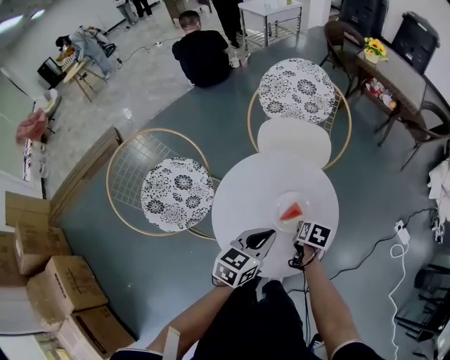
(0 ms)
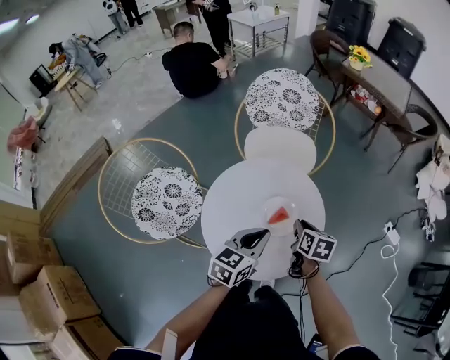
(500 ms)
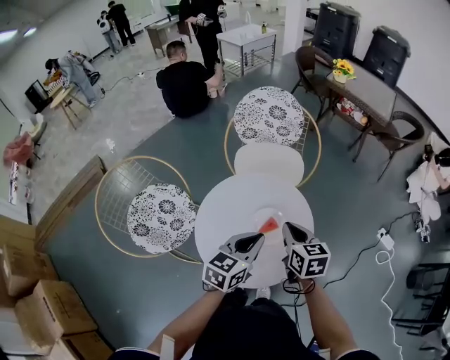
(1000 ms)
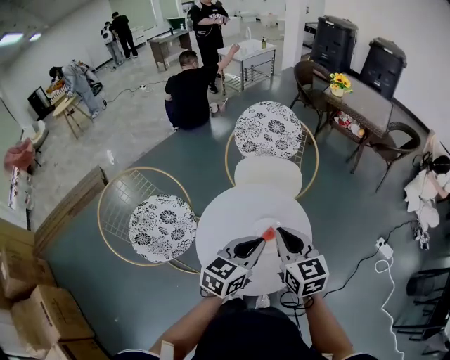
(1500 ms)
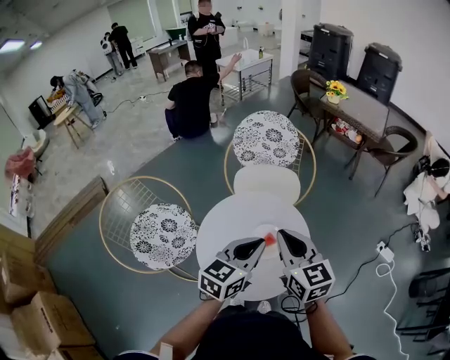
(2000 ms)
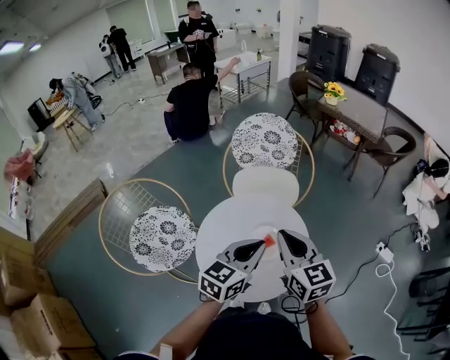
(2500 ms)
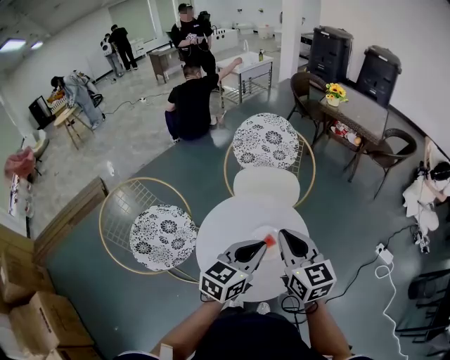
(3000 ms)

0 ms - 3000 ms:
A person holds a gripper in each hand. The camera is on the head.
0 ms - 1500 ms: The right gripper heads upward, covering approximately 30 cm, tilts its fingers about 50 degrees upward, and closes up. Meanwhile the left gripper heads upward, covering roughly 10 cm.
1500 ms - 3000 ms: The grippers make only small movements.

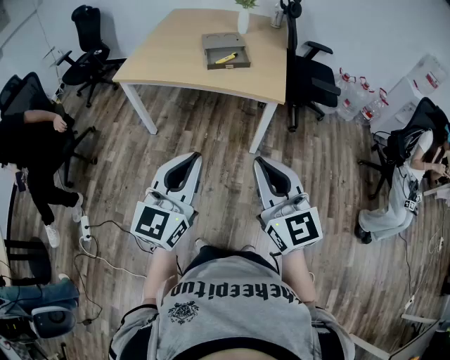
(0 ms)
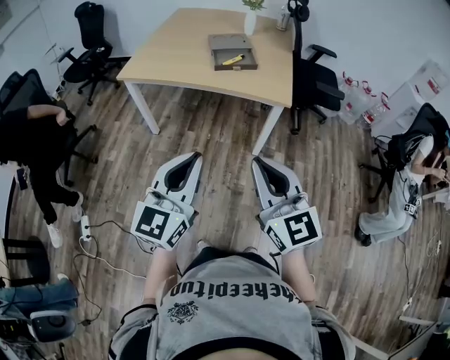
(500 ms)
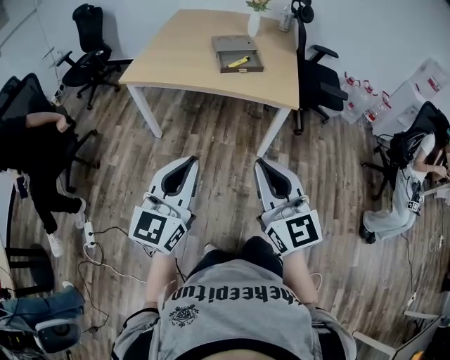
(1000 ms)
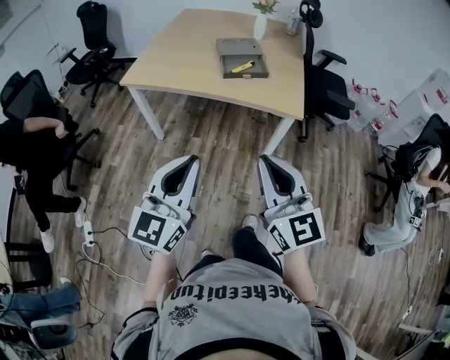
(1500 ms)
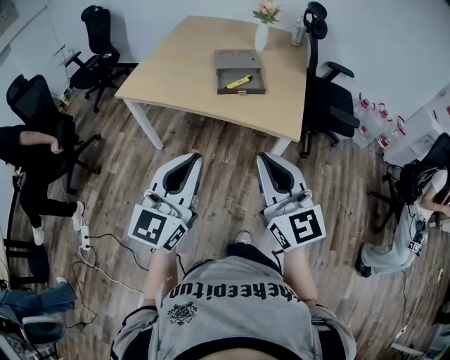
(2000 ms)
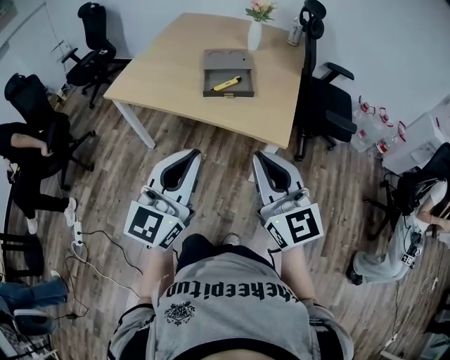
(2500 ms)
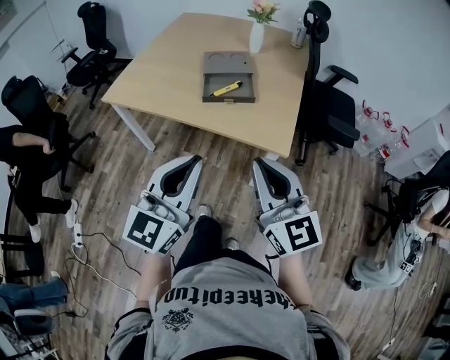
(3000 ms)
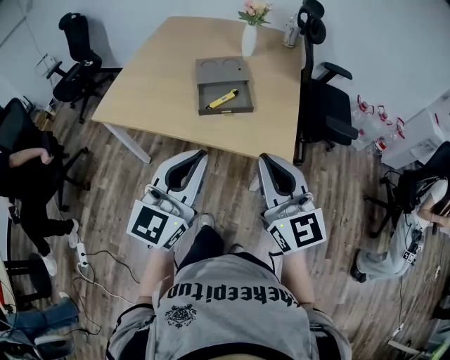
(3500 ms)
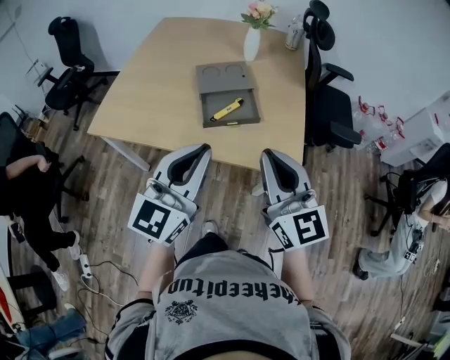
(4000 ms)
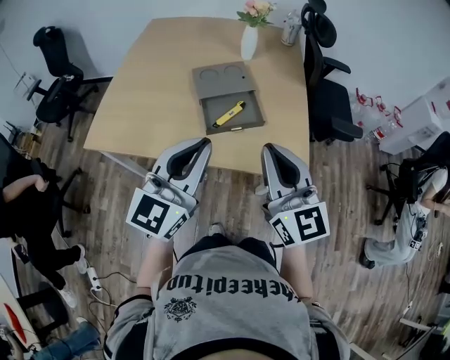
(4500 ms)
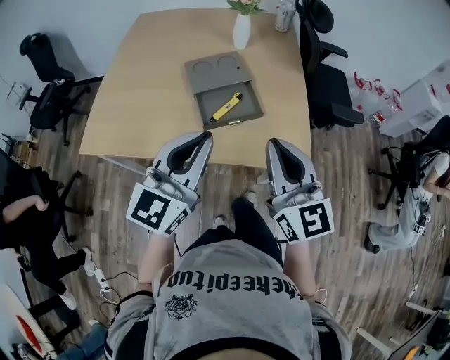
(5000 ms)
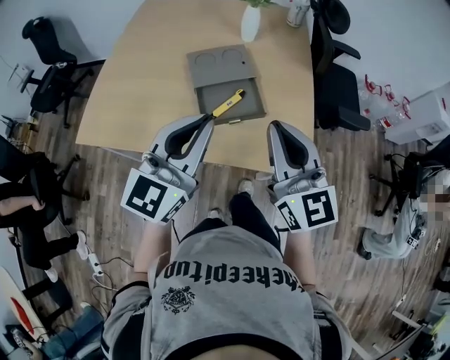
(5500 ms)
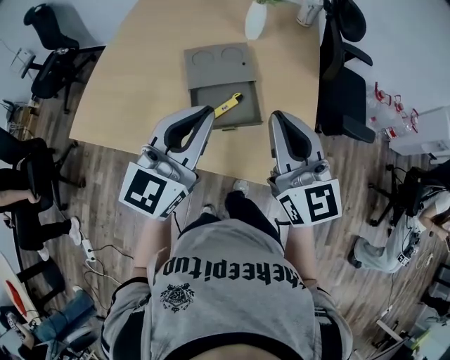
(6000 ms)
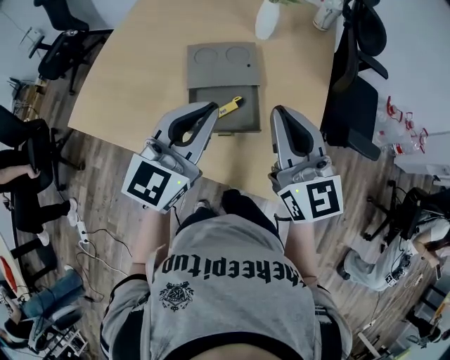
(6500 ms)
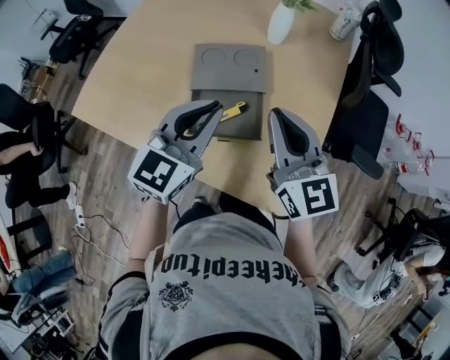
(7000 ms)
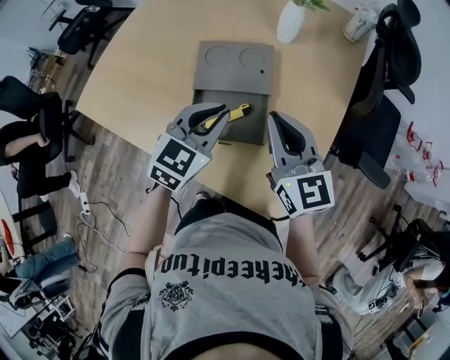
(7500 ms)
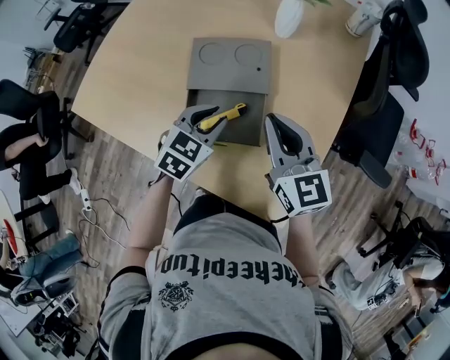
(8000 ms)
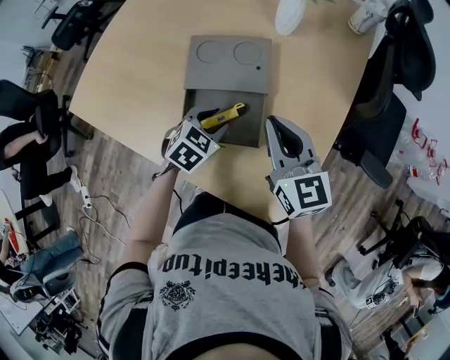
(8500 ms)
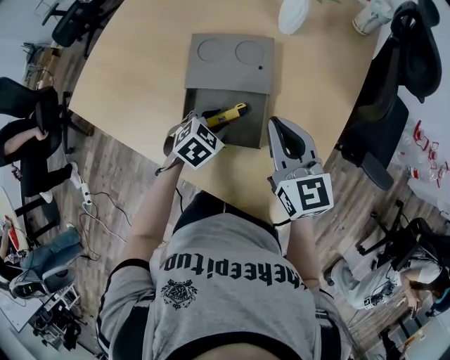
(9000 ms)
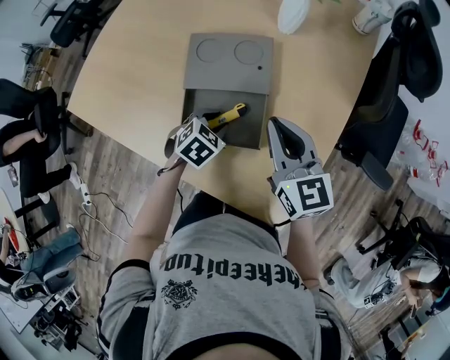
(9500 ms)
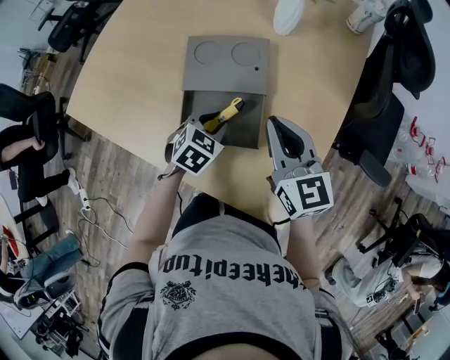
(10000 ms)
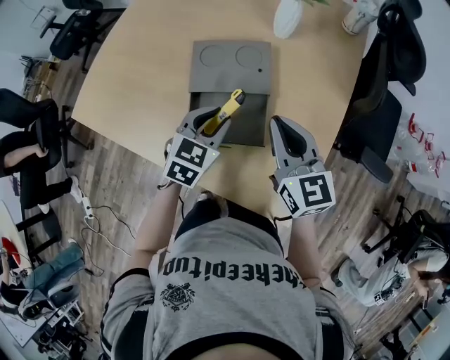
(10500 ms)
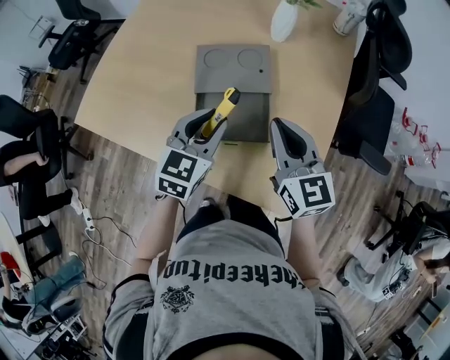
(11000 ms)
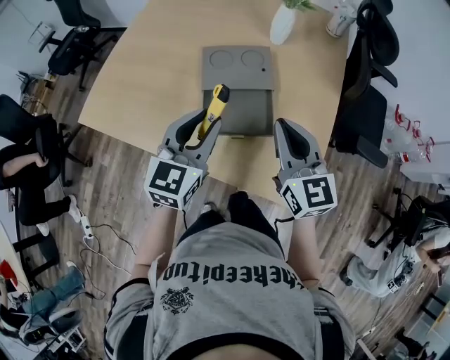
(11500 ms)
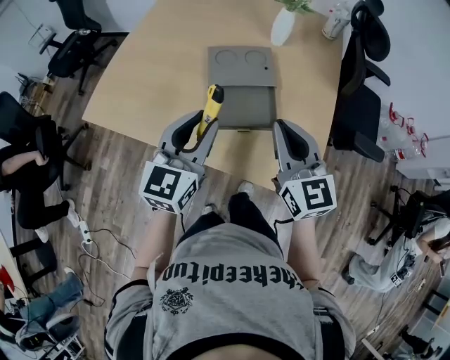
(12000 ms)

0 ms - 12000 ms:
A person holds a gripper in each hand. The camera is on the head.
0 ms - 2000 ms: Both grippers travel together forward, roughly 15 cm.
2000 ms - 4000 ms: Both grippers travel together forward, roughly 25 cm.
4000 ms - 6000 ms: Both grippers move forward, roughly 20 cm.
6000 ms - 8000 ms: The right gripper heads forward and downward, covering some 20 cm, and rotates approximately 20 degrees; the left gripper moves downward and forward, some 25 cm, and tips its fingers downward by roughly 40 degrees.
8000 ms - 10000 ms: The left gripper heads downward, covering roughly 10 cm.
10000 ms - 12000 ms: The left gripper travels upward, backward and to the left by approximately 30 cm, and angles its fingers upward, by roughly 50 degrees. Meanwhile the right gripper moves backward, upward and to the left, roughly 15 cm.

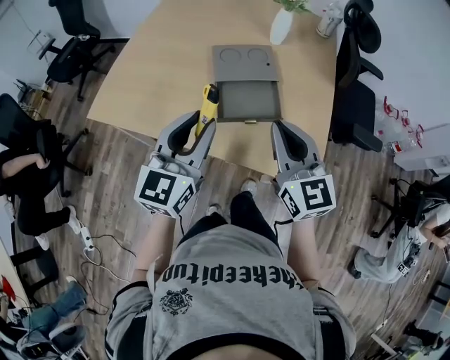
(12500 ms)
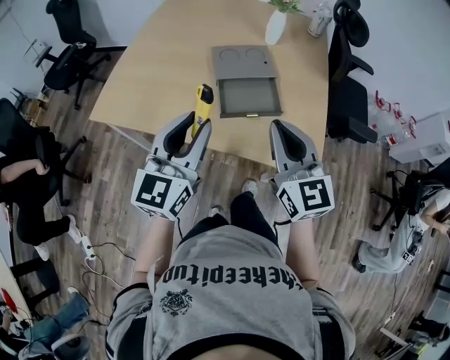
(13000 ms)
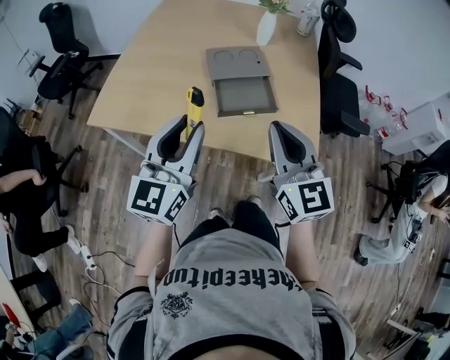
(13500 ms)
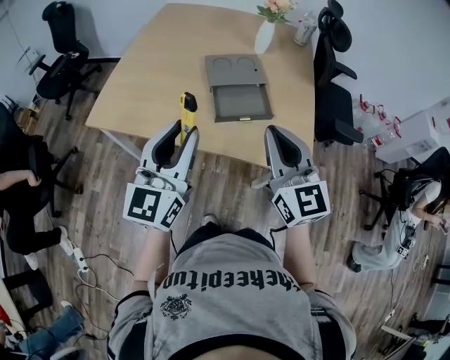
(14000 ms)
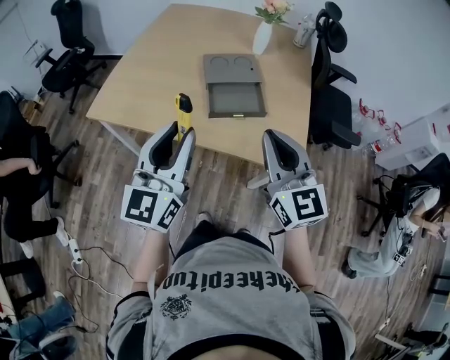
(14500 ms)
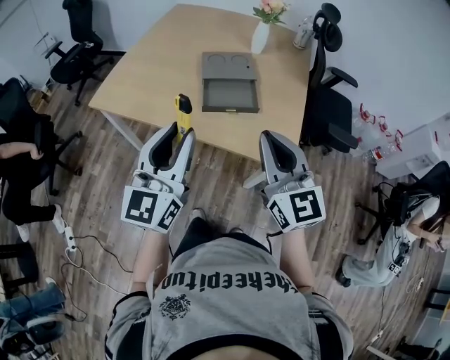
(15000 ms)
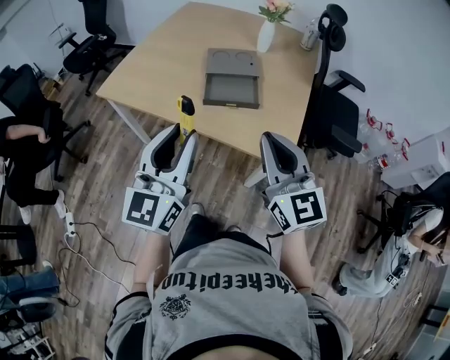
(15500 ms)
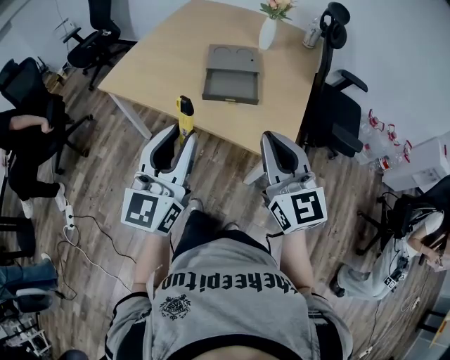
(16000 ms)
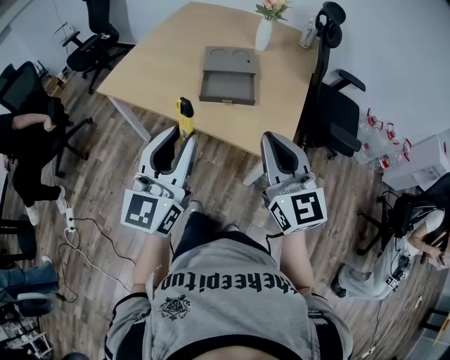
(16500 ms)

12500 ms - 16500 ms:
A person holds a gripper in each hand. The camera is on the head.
12500 ms - 14500 ms: Both grippers move backward and upward, about 15 cm.
14500 ms - 16500 ms: Both grippers move backward and to the right, roughly 15 cm.

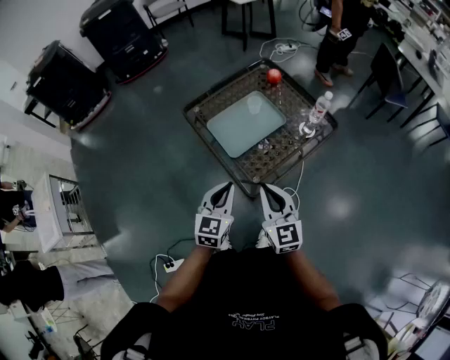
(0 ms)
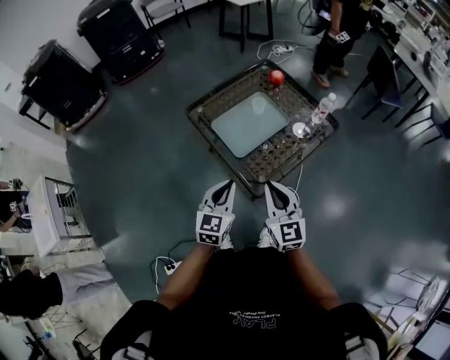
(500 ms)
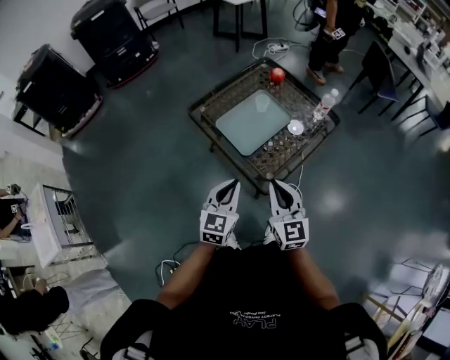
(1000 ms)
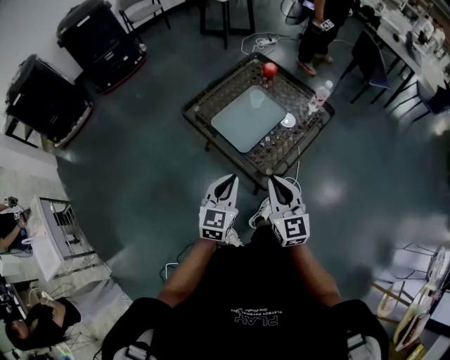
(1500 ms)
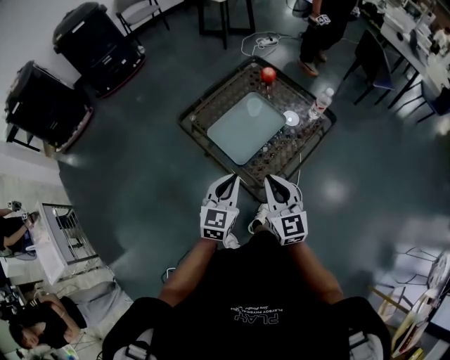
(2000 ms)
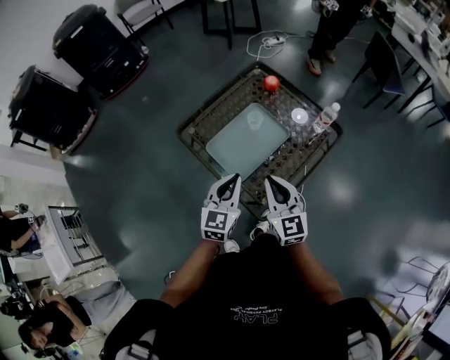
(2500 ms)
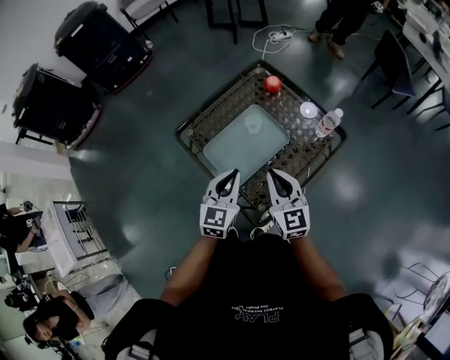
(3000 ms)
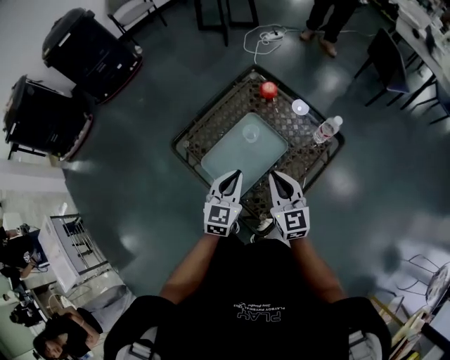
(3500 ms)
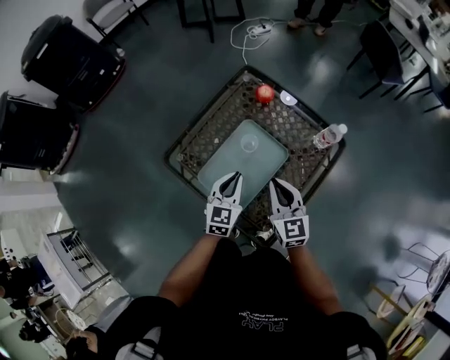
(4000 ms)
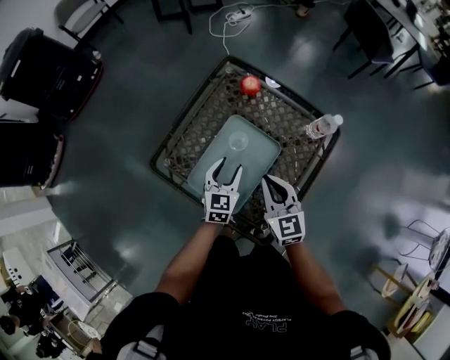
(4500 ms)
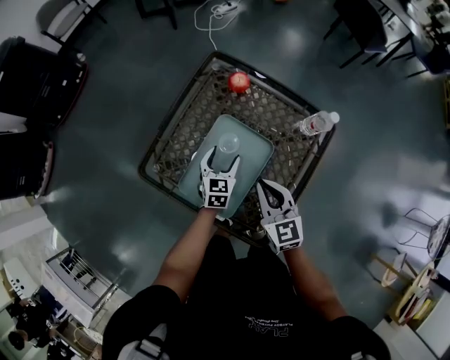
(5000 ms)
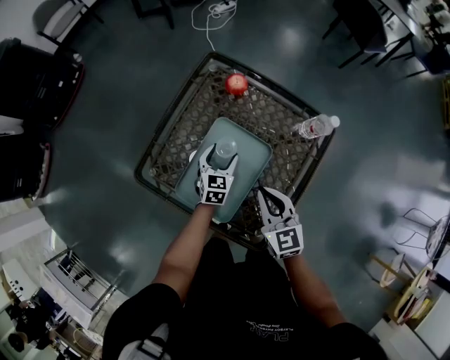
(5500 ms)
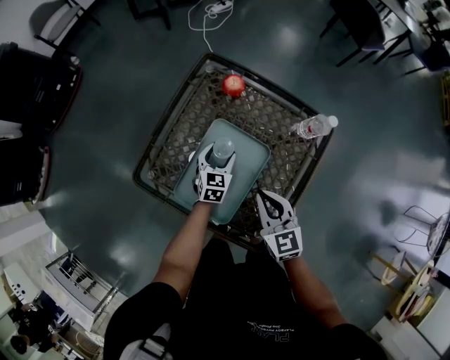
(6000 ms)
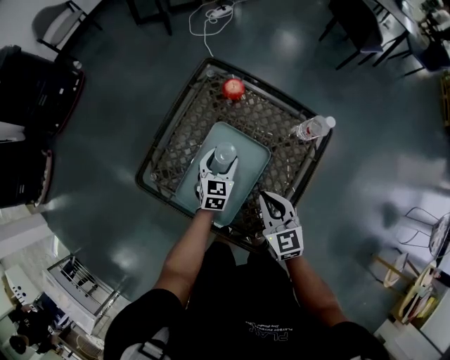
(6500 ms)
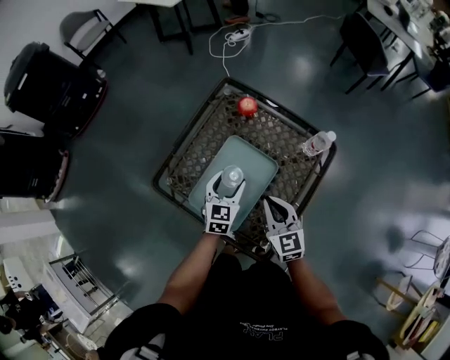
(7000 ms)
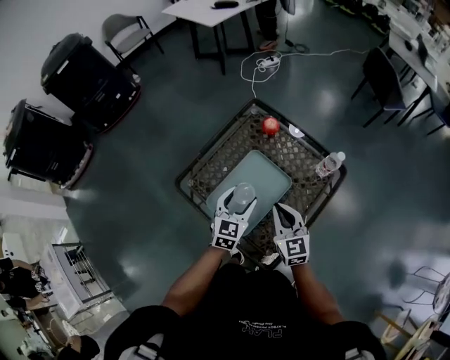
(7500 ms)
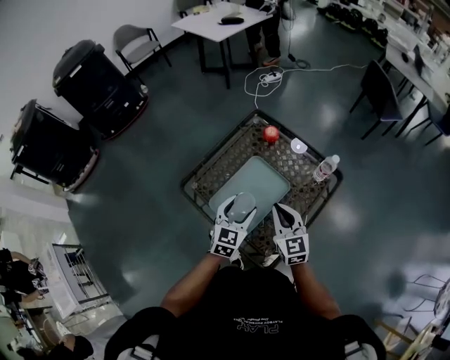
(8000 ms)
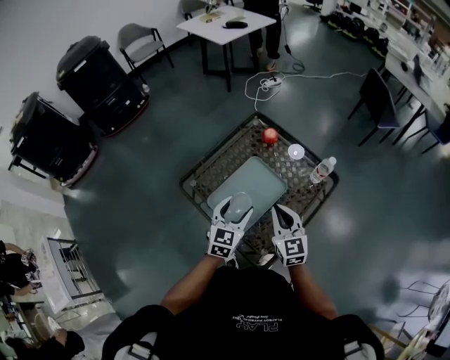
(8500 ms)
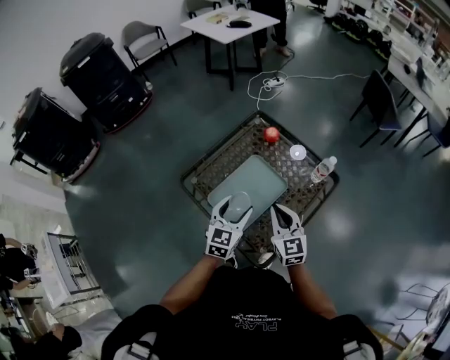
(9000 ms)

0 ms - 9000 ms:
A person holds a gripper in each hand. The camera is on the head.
0 ms - 2000 ms: The right gripper goes roughly 10 cm forward and to the left. Meanwhile the left gripper shifts about 5 cm forward.
2000 ms - 4500 ms: The right gripper shifts some 25 cm forward. The left gripper heads forward and downward, covering some 30 cm, and opens up.
4500 ms - 7000 ms: The left gripper reaches about 10 cm downward, then returns.
7000 ms - 9000 ms: The left gripper shifts roughly 15 cm upward and backward. Meanwhile the right gripper heads upward, covering roughly 10 cm.
